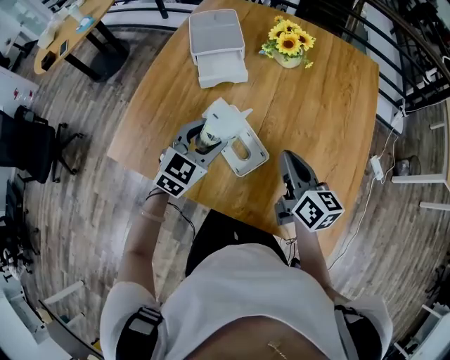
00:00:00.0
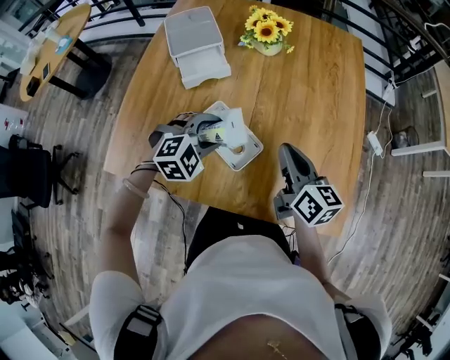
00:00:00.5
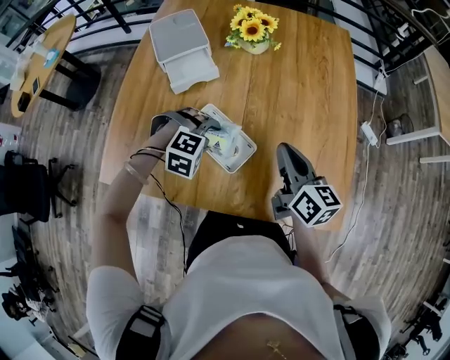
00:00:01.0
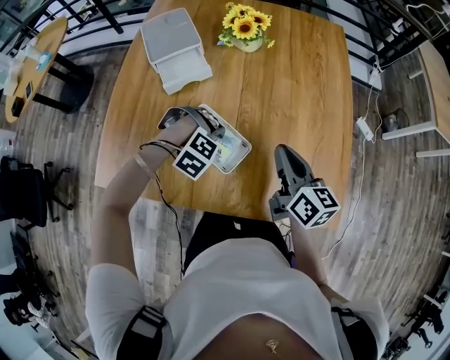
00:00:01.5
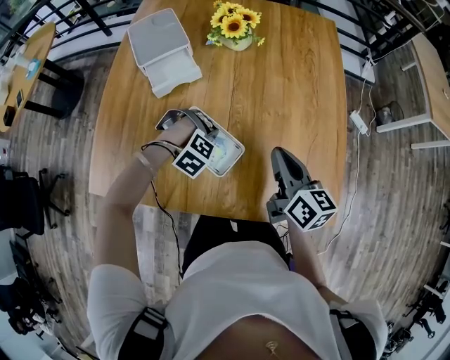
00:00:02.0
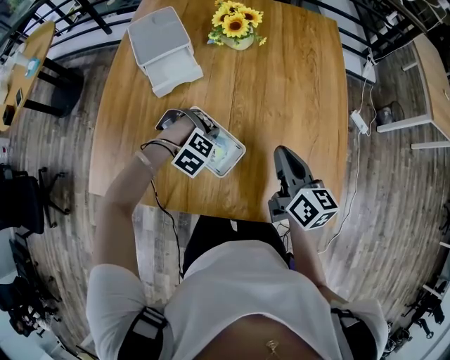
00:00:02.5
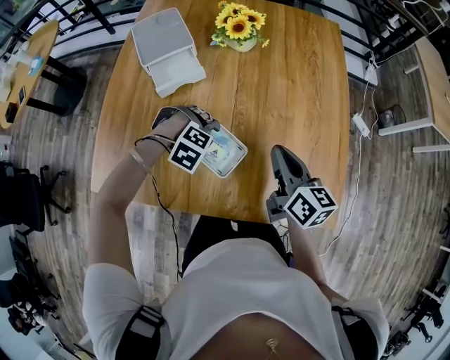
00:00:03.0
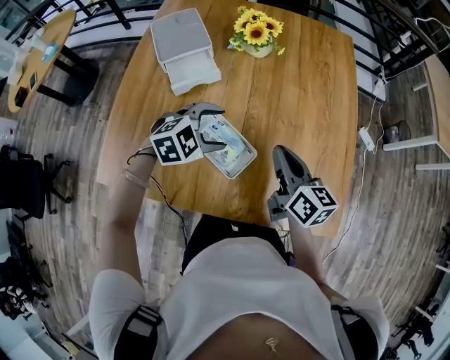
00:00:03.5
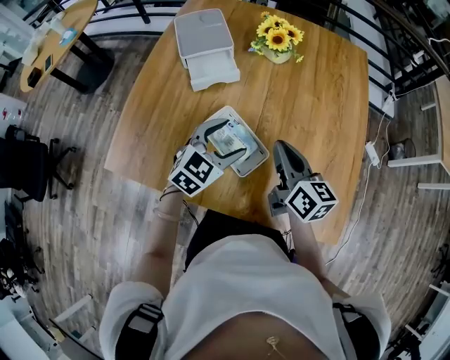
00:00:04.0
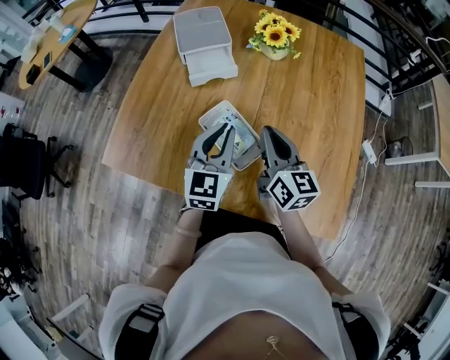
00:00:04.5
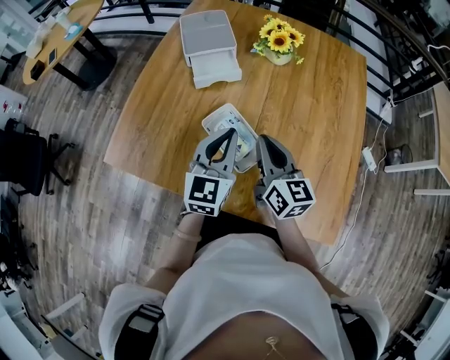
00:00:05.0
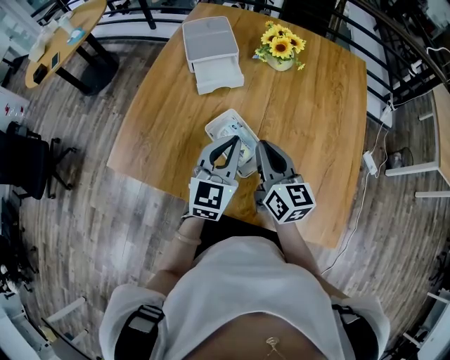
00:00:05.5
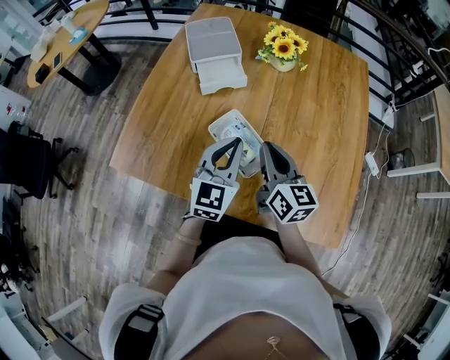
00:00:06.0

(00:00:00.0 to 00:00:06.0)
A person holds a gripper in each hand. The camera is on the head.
00:00:00.0 - 00:00:02.0: The right gripper ends up some 5 cm from where it was, while the left gripper is displaced downward by roughly 20 cm, and angles its fingers downward, by roughly 60 degrees.
00:00:02.0 - 00:00:04.0: The right gripper ends up some 10 cm from where it was; the left gripper shifts approximately 15 cm upward, points its fingers approximately 60 degrees further upward, and opens.
00:00:04.0 - 00:00:06.0: The right gripper moves approximately 5 cm; the left gripper is displaced upward by approximately 5 cm, rotates about 30 degrees, and closes up.

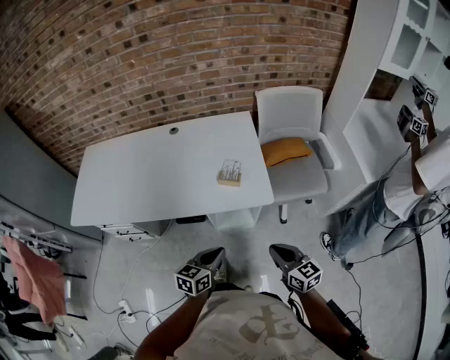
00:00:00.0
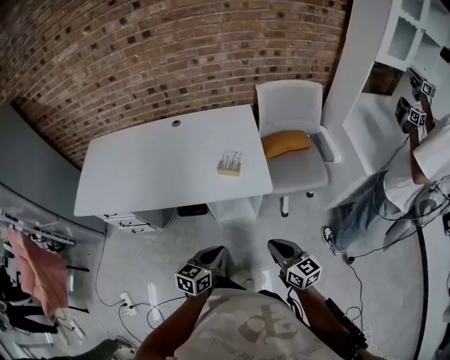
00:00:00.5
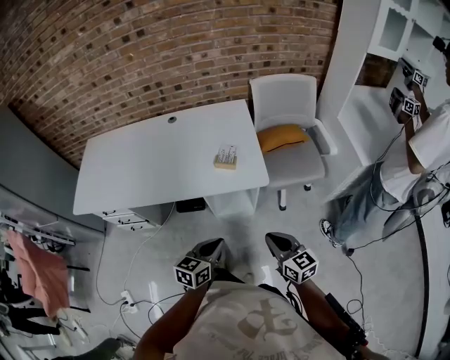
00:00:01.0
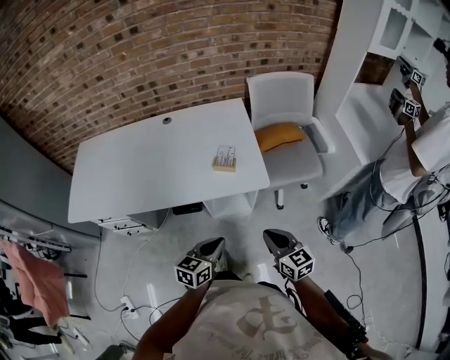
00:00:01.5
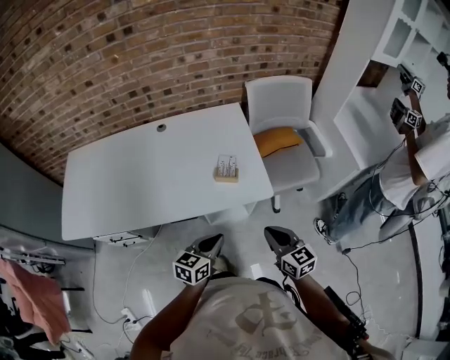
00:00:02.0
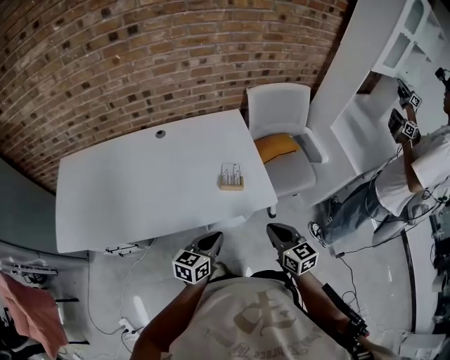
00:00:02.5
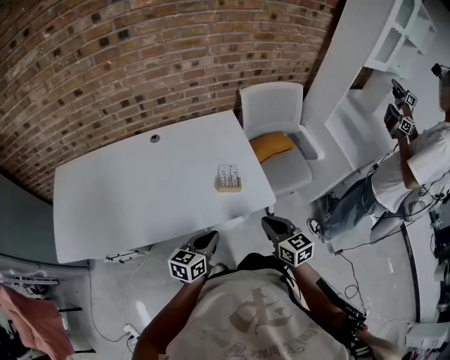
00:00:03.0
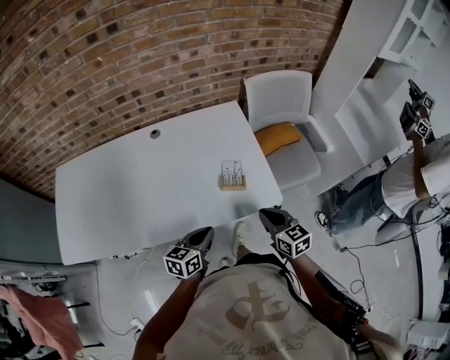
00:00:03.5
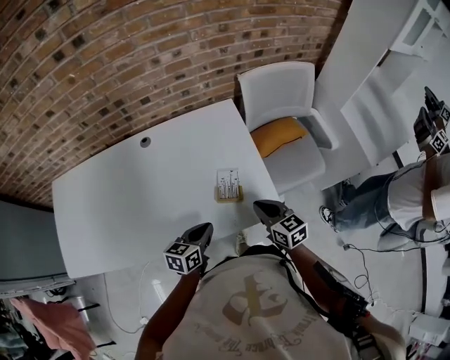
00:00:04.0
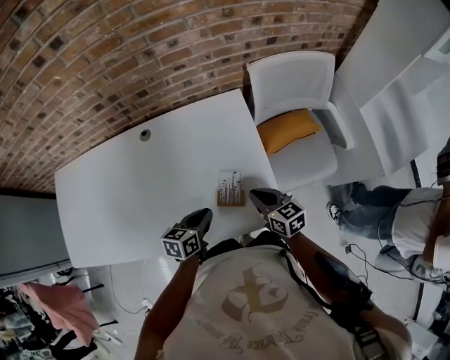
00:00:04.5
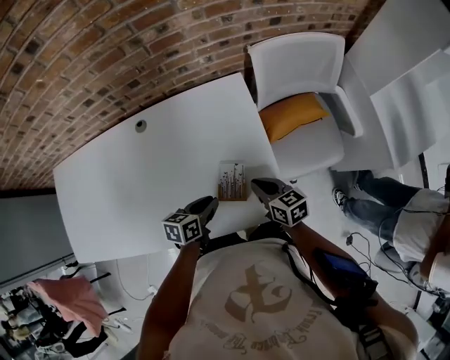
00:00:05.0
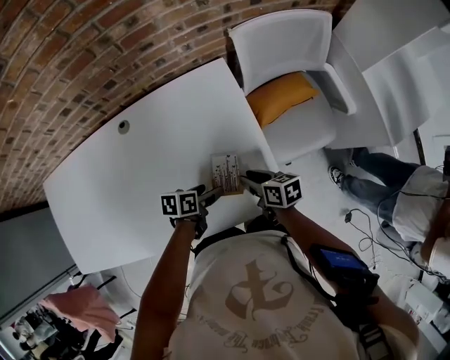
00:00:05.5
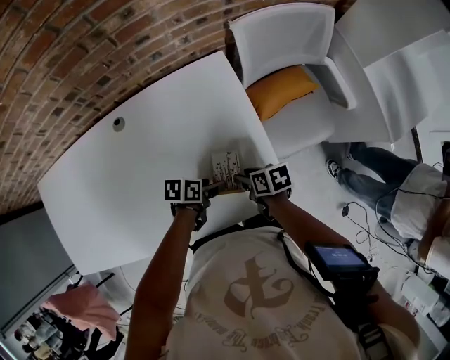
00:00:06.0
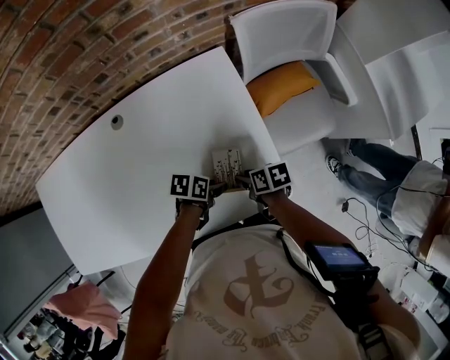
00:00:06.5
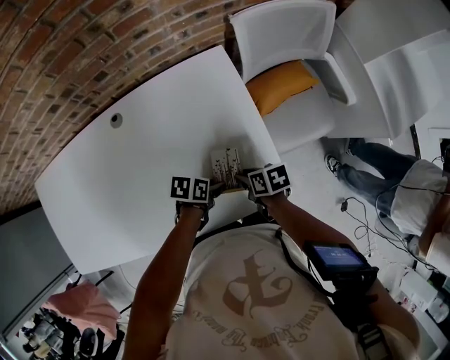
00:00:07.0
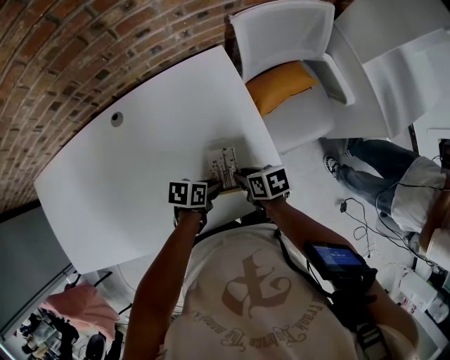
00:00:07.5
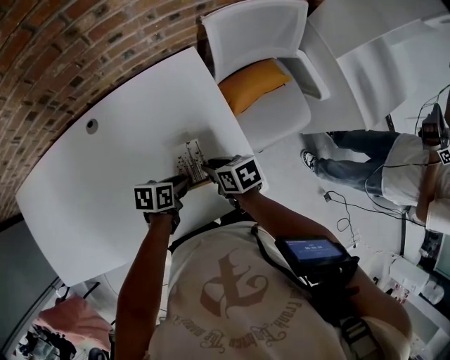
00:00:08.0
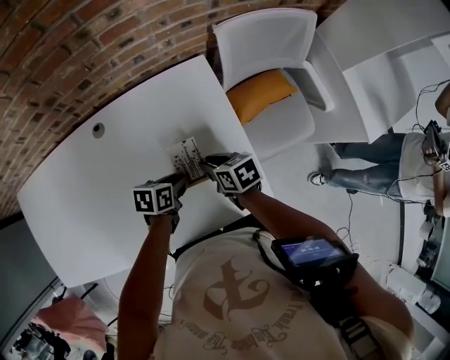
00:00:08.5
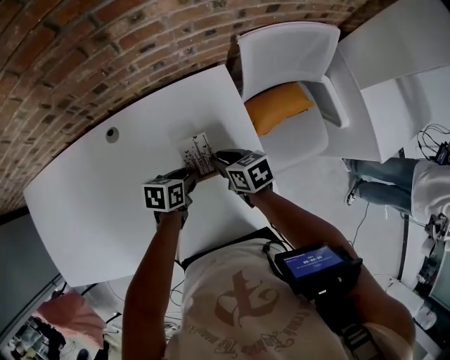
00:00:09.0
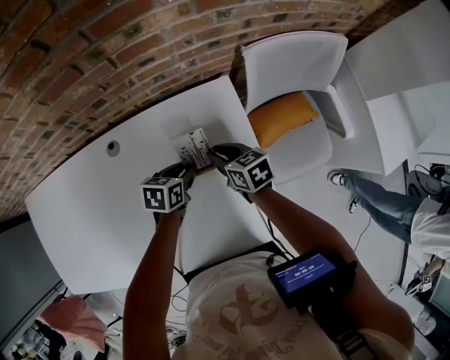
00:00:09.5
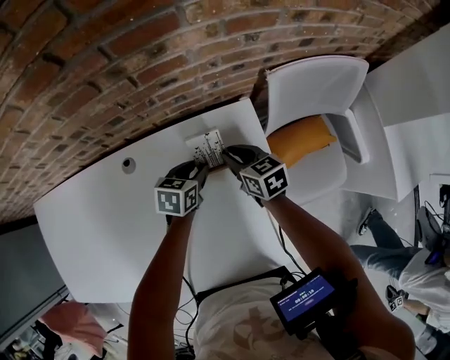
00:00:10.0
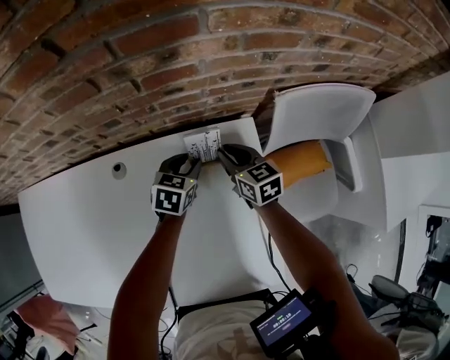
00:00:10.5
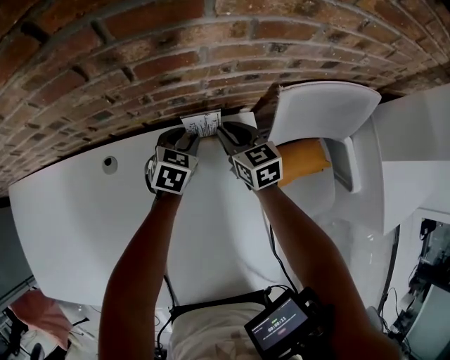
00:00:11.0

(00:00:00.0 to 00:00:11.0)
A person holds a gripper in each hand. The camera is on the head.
00:00:00.0 - 00:00:02.0: The grippers both shift forward by roughly 5 cm.
00:00:02.0 - 00:00:03.5: The left gripper travels to the left and forward by approximately 15 cm. Meanwhile the right gripper shifts about 15 cm forward and to the left.
00:00:03.5 - 00:00:05.5: Both grippers move forward and downward, approximately 25 cm. The right gripper changes its angle by about 40 degrees, and opens its fingers. Meanwhile the left gripper rotates about 40 degrees, and opens.
00:00:05.5 - 00:00:07.5: The left gripper closes.
00:00:07.5 - 00:00:09.0: The left gripper shifts by roughly 15 cm, while the right gripper moves approximately 15 cm, and changes its angle by about 20 degrees.
00:00:09.0 - 00:00:11.0: The grippers both shift forward by approximately 25 cm. The right gripper swivels approximately 30 degrees. The left gripper changes its angle by roughly 40 degrees.

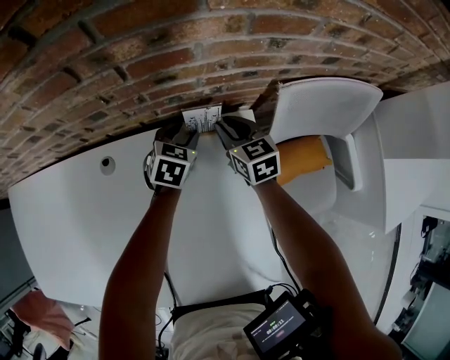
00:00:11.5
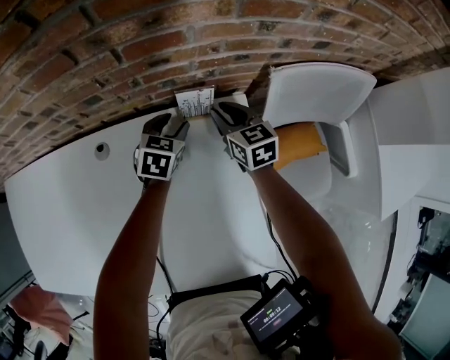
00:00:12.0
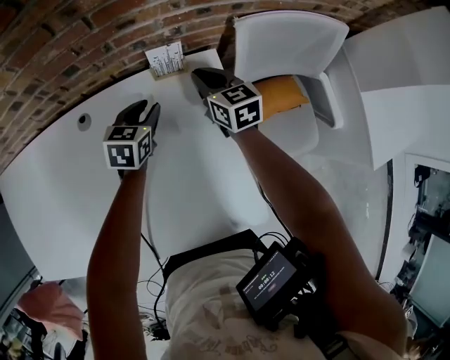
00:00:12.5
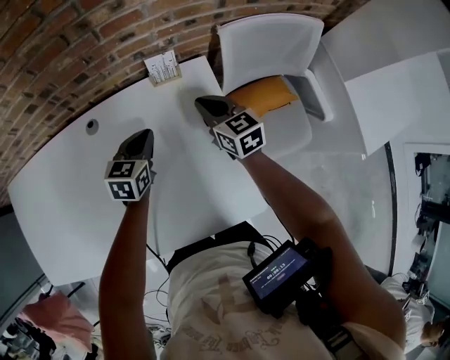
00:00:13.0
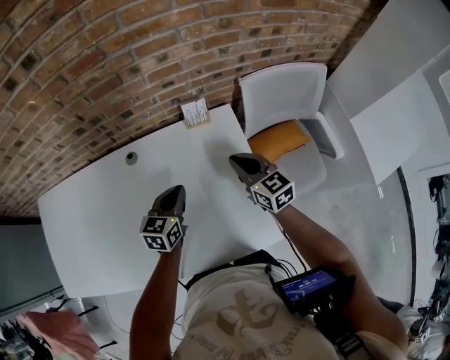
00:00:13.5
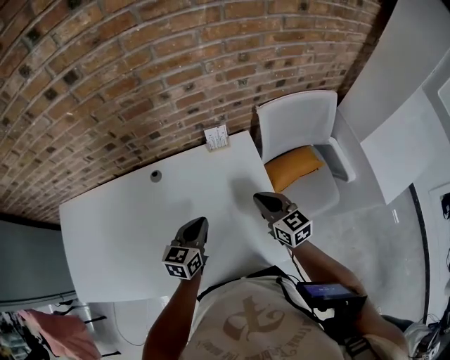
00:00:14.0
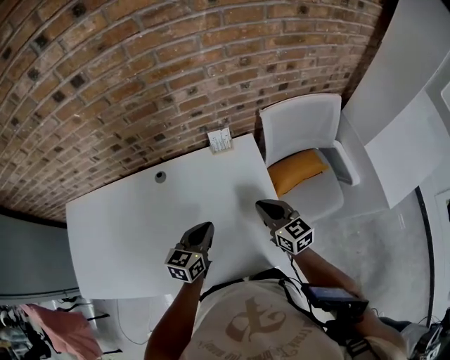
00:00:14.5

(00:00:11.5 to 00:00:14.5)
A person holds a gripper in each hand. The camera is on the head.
00:00:11.5 - 00:00:13.0: Both grippers move backward and upward, approximately 20 cm. The left gripper closes up, while the right gripper closes its fingers.
00:00:13.0 - 00:00:14.5: The two grippers go about 15 cm backward and upward.

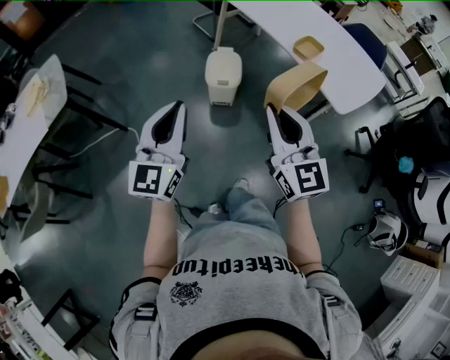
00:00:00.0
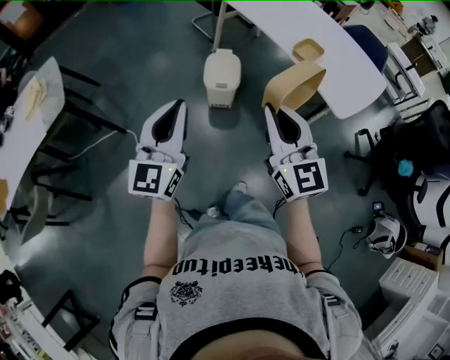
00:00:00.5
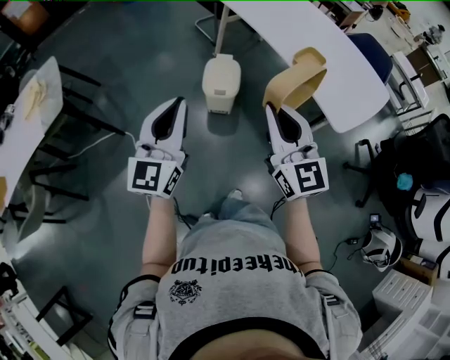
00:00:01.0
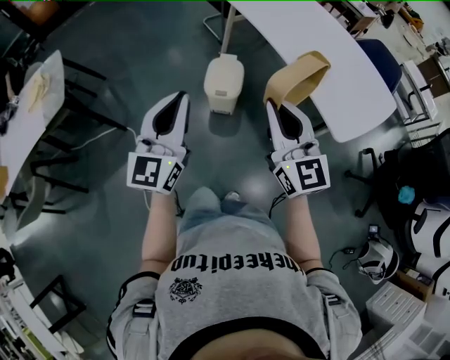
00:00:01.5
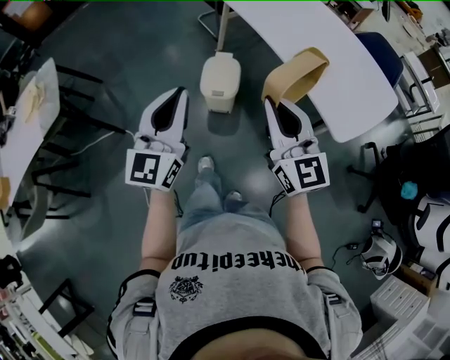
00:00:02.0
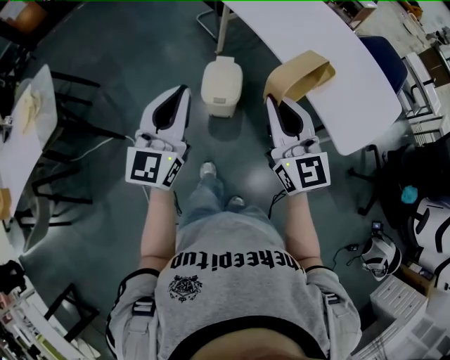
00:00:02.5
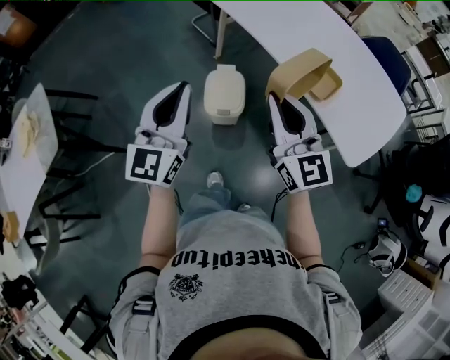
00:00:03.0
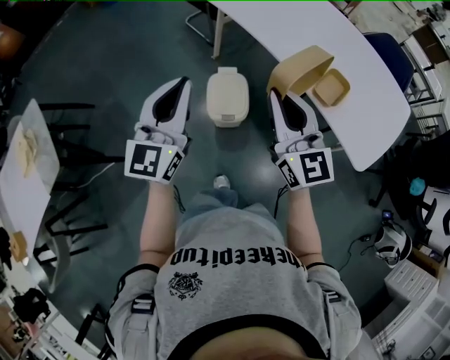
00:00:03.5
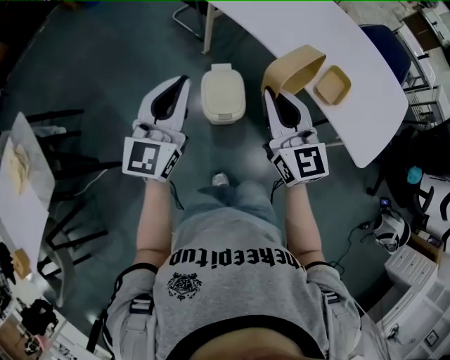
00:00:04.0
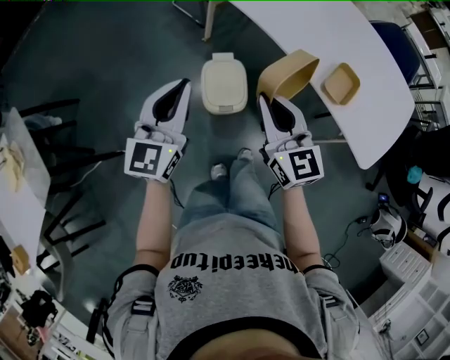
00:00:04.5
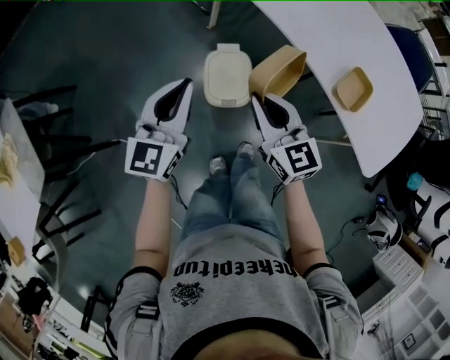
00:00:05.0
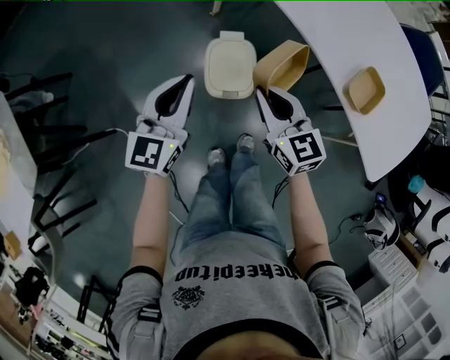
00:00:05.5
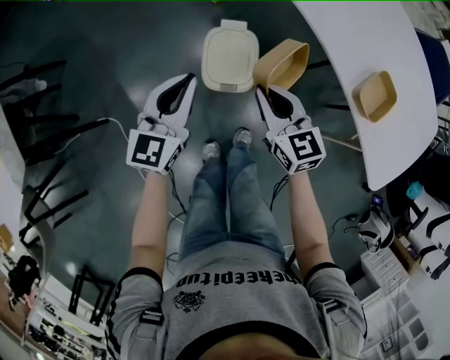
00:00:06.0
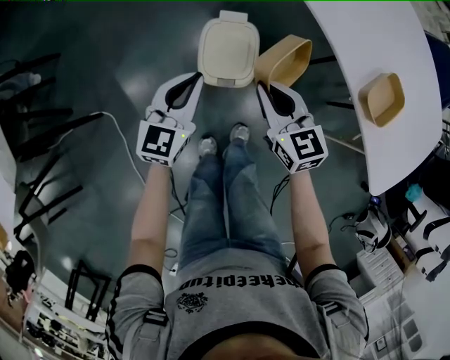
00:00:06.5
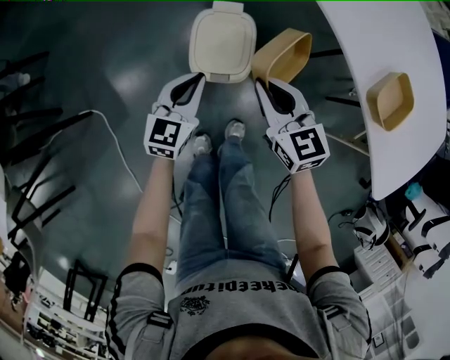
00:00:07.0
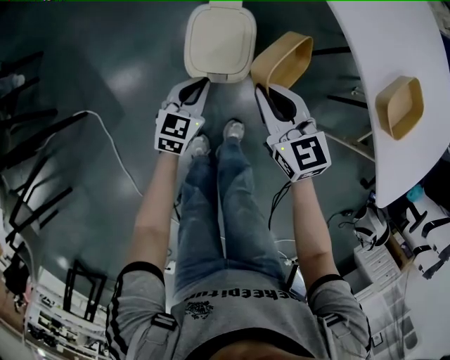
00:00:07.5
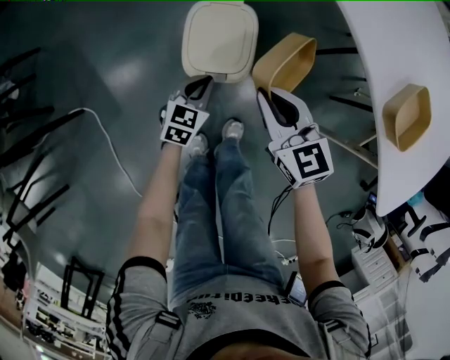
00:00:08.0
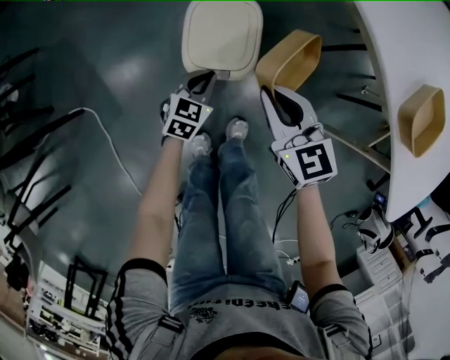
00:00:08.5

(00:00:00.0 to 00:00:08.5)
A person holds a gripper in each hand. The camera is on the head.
00:00:00.0 - 00:00:02.0: The grippers both shift forward and to the right by roughly 15 cm.
00:00:02.0 - 00:00:04.0: The grippers both shift forward by some 25 cm.
00:00:04.0 - 00:00:06.5: The two grippers go about 25 cm downward. The right gripper swivels some 30 degrees.
00:00:06.5 - 00:00:08.5: The left gripper travels downward by some 30 cm, and turns by some 30 degrees. Meanwhile the right gripper heads downward, covering about 10 cm.
